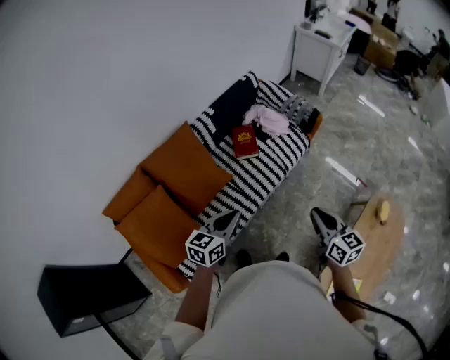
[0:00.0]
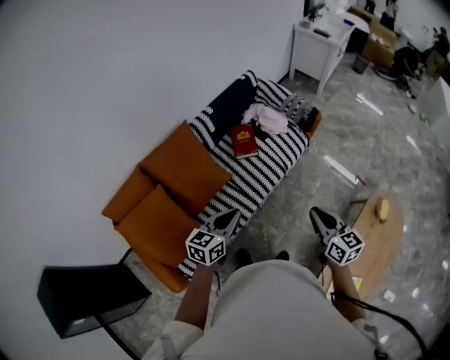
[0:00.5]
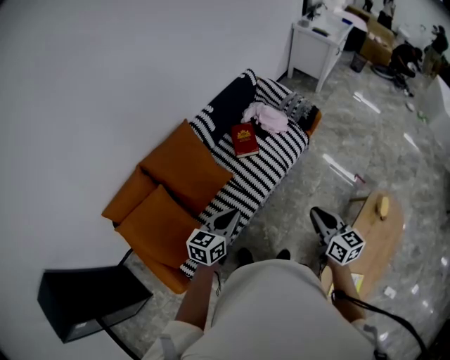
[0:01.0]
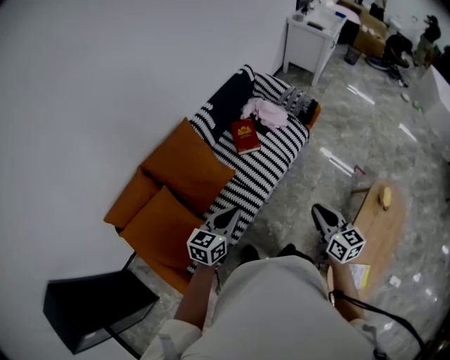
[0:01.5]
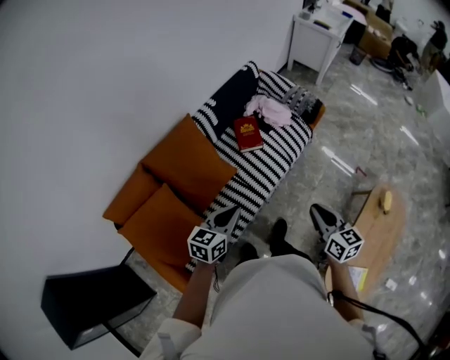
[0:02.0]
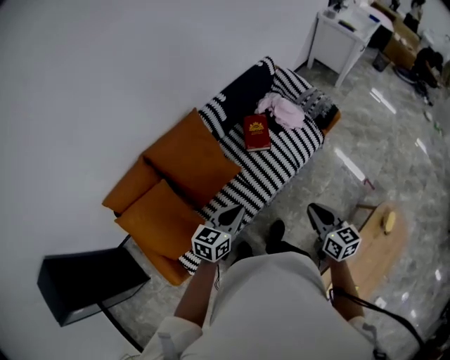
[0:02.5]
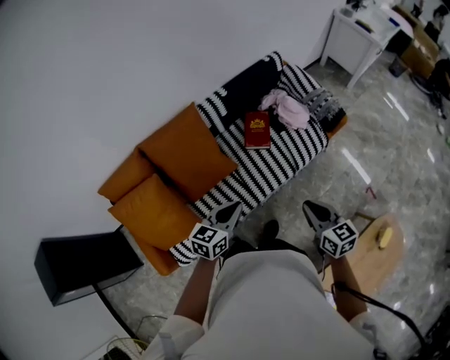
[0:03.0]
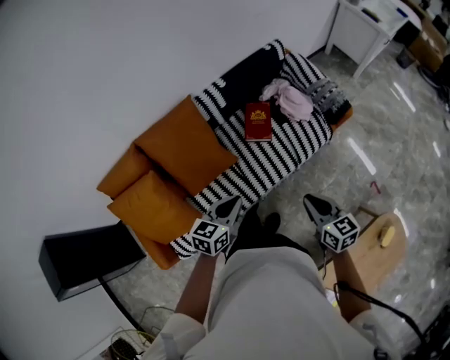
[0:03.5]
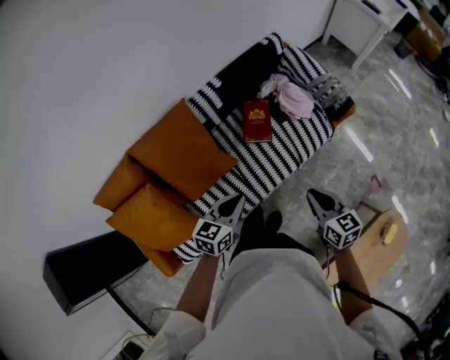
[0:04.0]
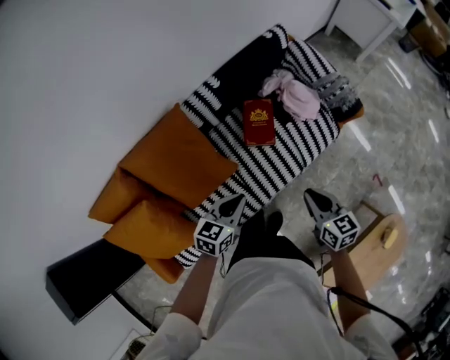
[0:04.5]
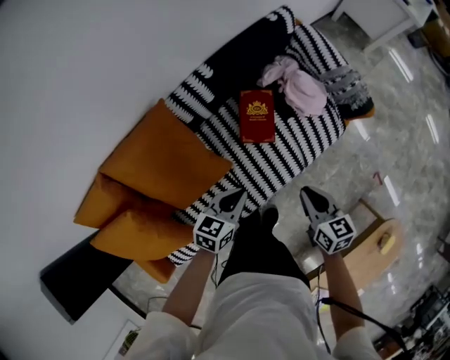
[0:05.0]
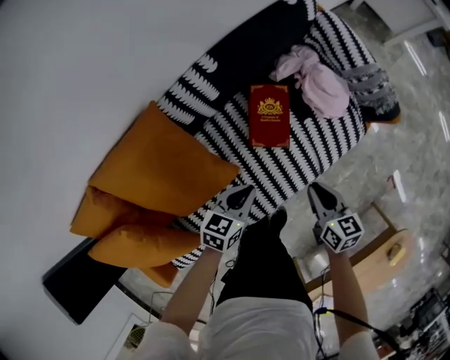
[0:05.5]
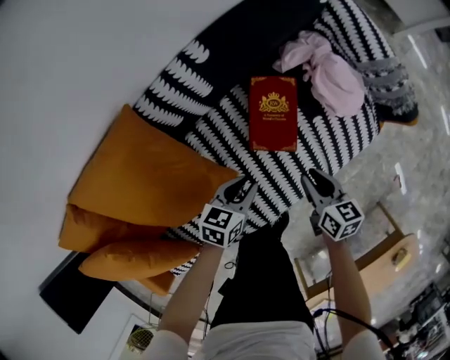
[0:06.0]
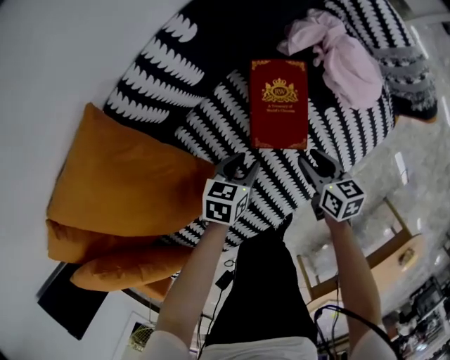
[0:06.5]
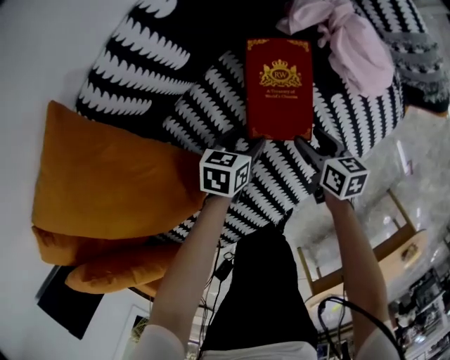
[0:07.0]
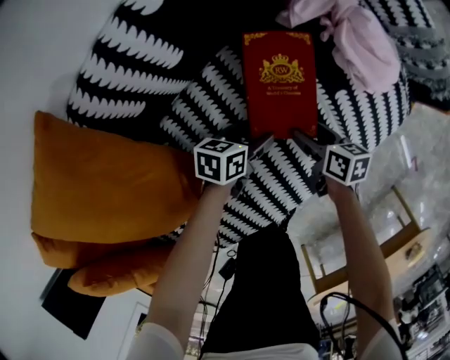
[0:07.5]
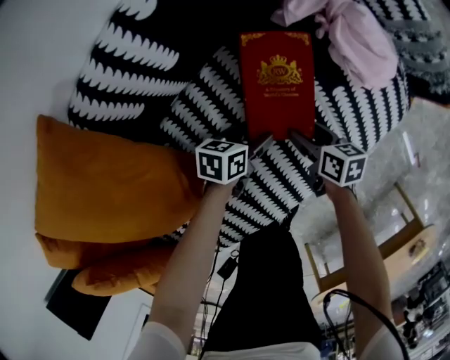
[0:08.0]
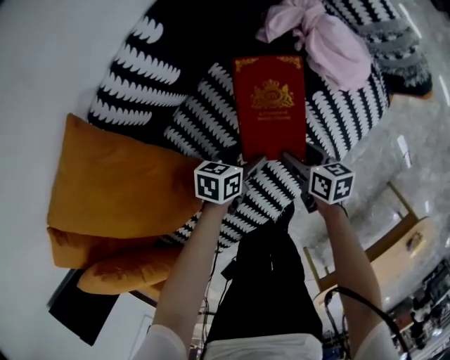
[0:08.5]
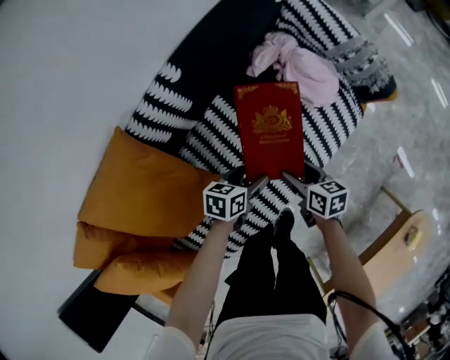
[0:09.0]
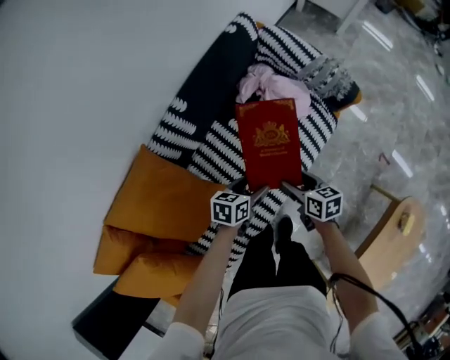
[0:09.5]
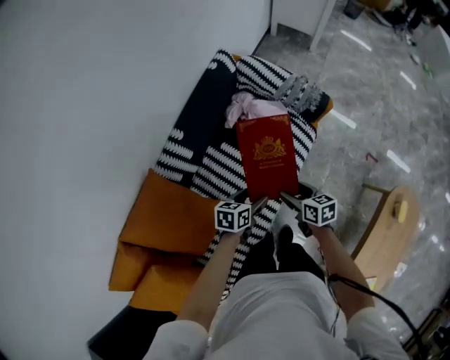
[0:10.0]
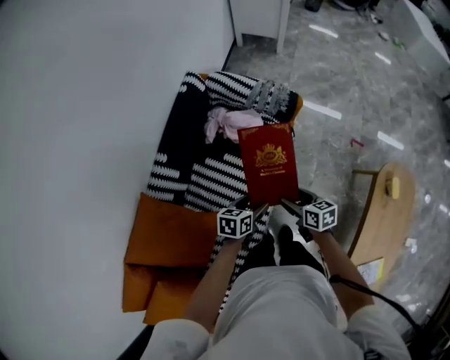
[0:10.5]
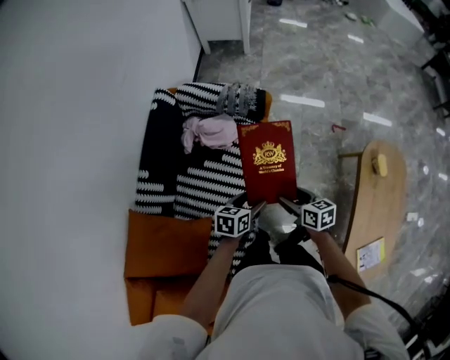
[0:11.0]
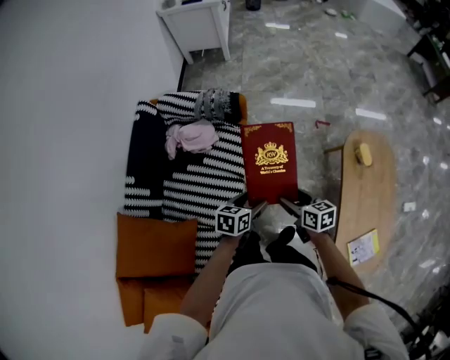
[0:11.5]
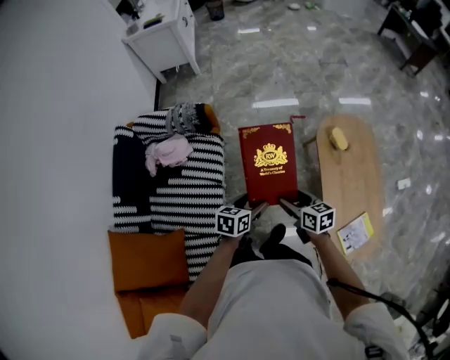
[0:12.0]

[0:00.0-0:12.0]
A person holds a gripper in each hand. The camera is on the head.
0:00.0 to 0:02.0: The grippers both shift to the left by about 5 cm.
0:02.0 to 0:04.0: The right gripper moves forward, about 25 cm, and changes its angle by some 20 degrees. Meanwhile the left gripper goes some 20 cm forward and to the right.
0:04.0 to 0:06.0: Both grippers move downward and forward, roughly 40 cm. The left gripper rotates about 20 degrees.
0:06.0 to 0:08.0: The grippers both shift downward by approximately 20 cm. The left gripper rotates some 20 degrees, and opens up. The right gripper opens.
0:08.0 to 0:10.0: Both grippers move upward, about 35 cm. The left gripper changes its angle by approximately 20 degrees.
0:10.0 to 0:12.0: The two grippers travel together, some 40 cm. The right gripper changes its angle by approximately 40 degrees. The left gripper rotates approximately 40 degrees.

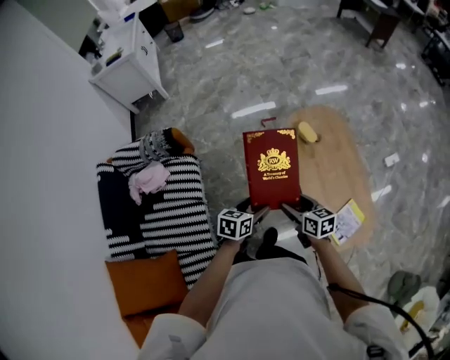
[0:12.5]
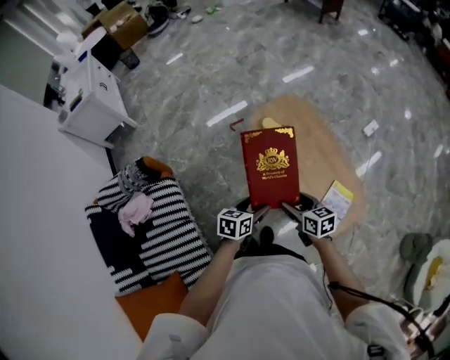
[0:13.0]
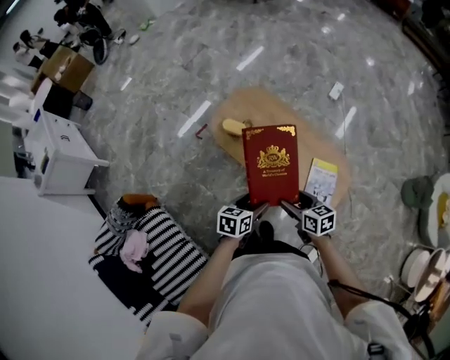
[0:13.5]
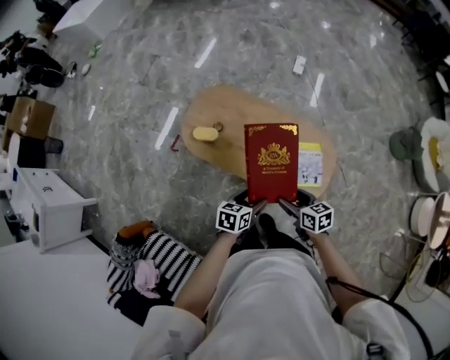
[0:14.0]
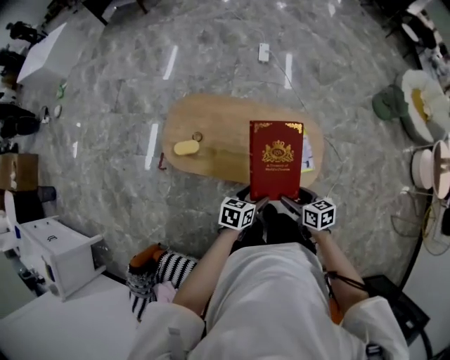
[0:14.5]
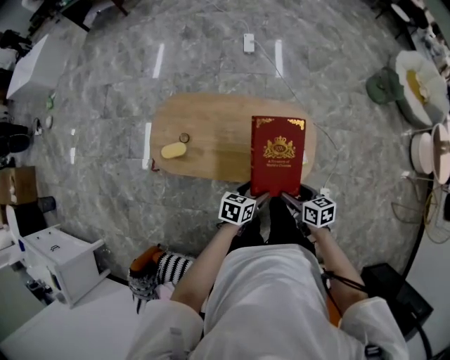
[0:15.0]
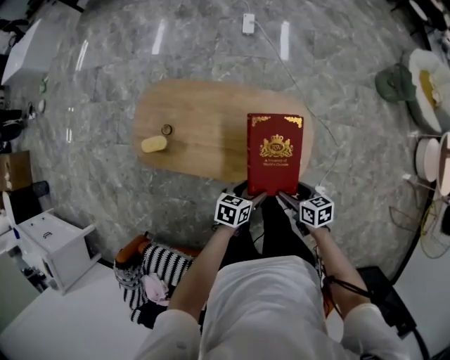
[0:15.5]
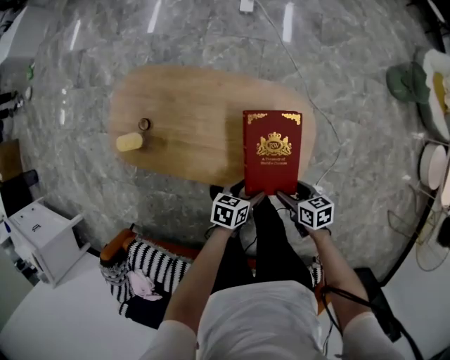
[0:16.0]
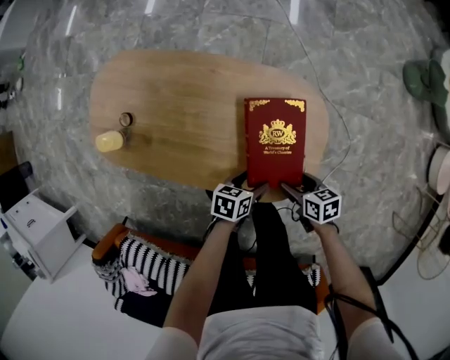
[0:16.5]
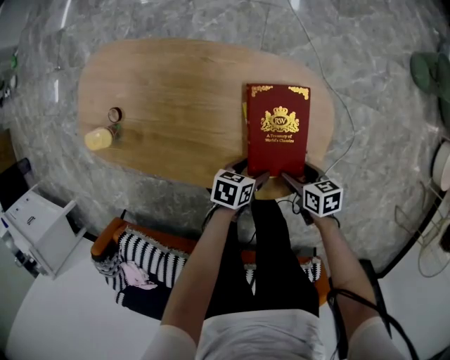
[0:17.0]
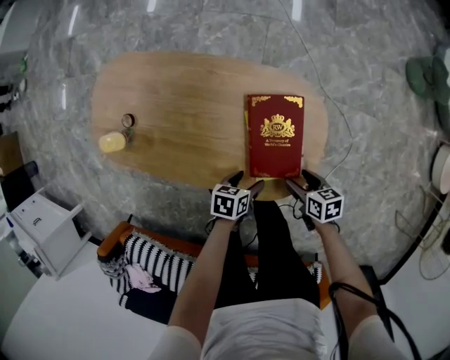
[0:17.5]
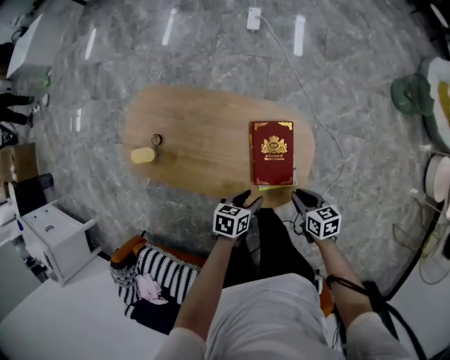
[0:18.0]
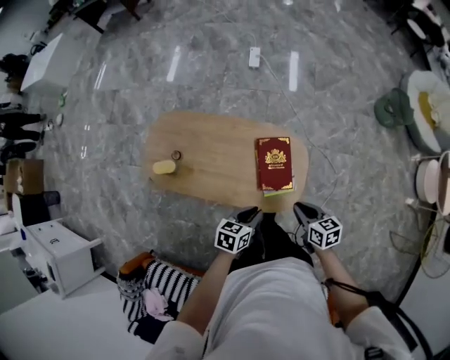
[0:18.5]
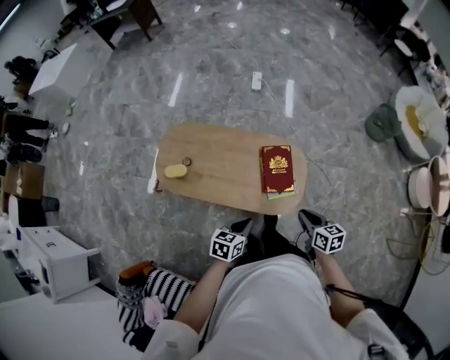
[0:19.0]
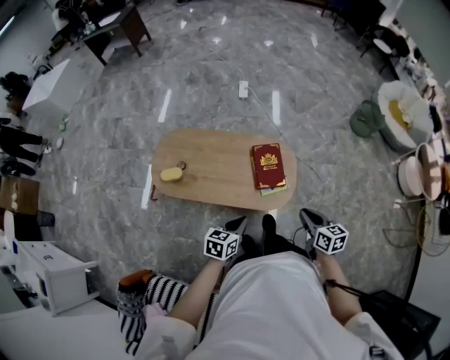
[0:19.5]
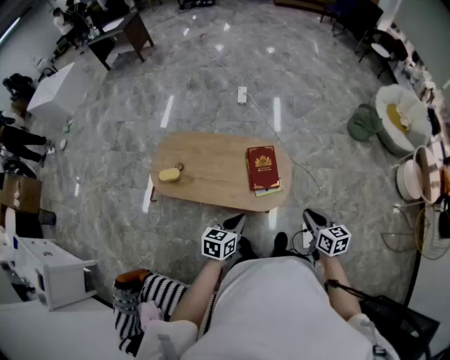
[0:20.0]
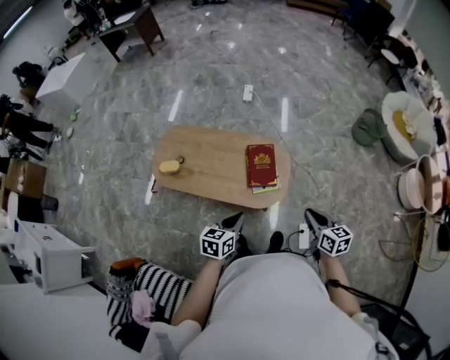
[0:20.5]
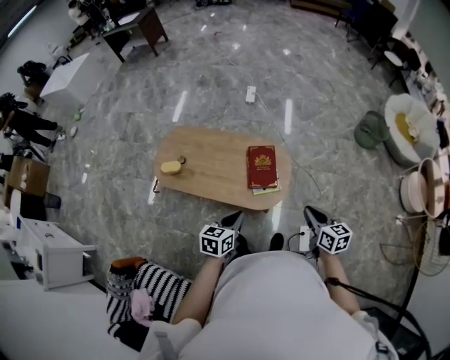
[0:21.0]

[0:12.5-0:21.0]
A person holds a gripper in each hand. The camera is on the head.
0:12.5 to 0:14.5: The right gripper moves approximately 25 cm, and changes its angle by approximately 60 degrees. The left gripper moves roughly 30 cm, and turns by roughly 70 degrees.
0:14.5 to 0:16.5: Both grippers move downward, about 30 cm.
0:16.5 to 0:19.0: Both grippers move upward, some 35 cm. The right gripper changes its angle by approximately 30 degrees, and closes; the left gripper changes its angle by roughly 20 degrees, and closes up.
0:19.0 to 0:21.0: The right gripper heads to the right, upward and backward, covering approximately 15 cm, while the left gripper shifts roughly 10 cm upward, to the right and backward.

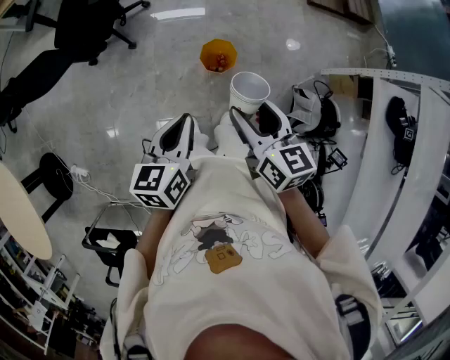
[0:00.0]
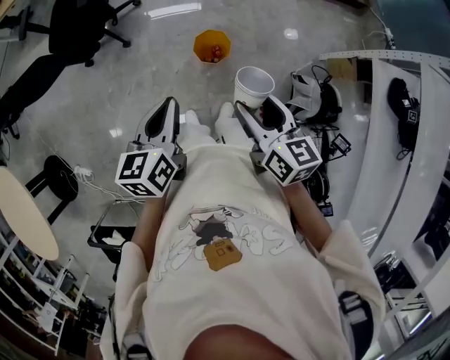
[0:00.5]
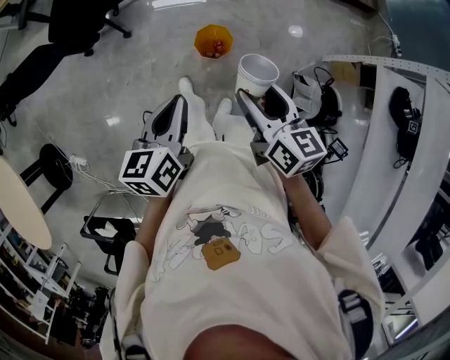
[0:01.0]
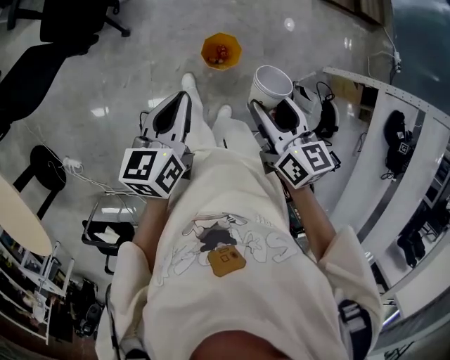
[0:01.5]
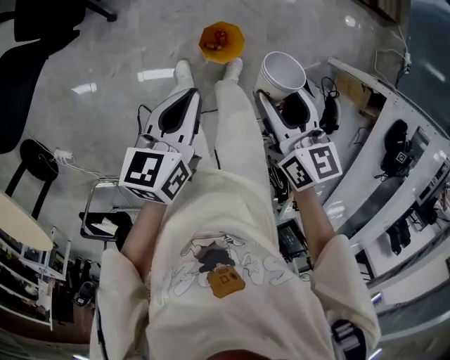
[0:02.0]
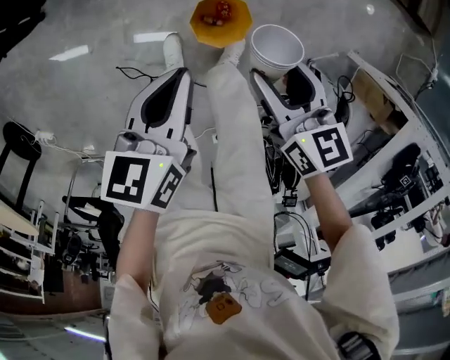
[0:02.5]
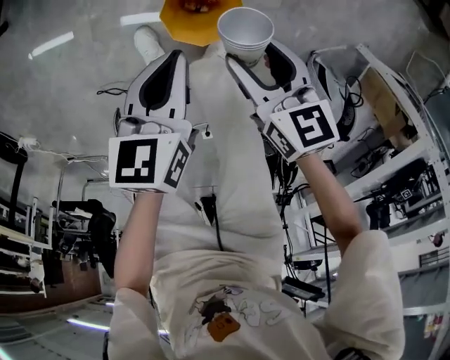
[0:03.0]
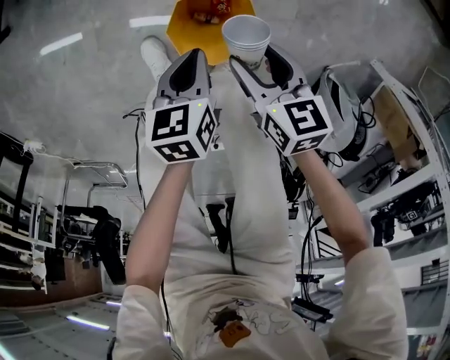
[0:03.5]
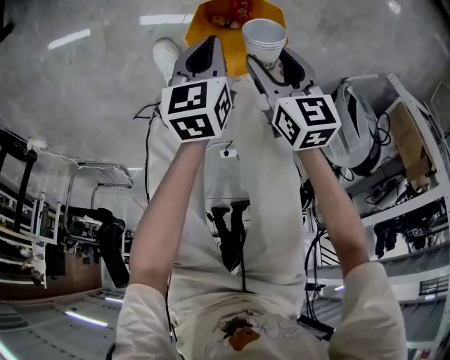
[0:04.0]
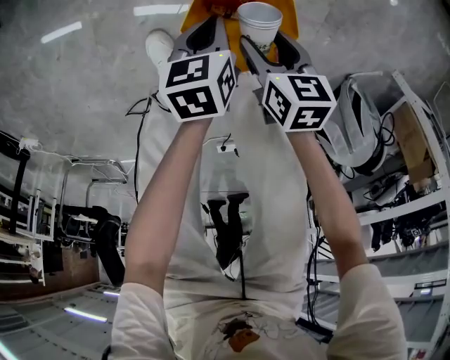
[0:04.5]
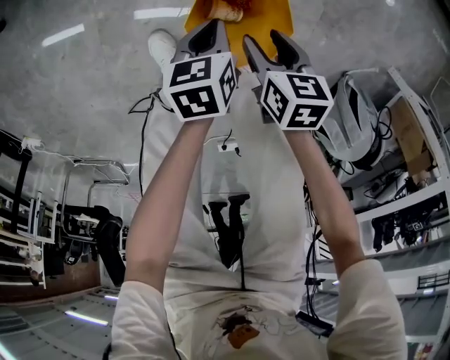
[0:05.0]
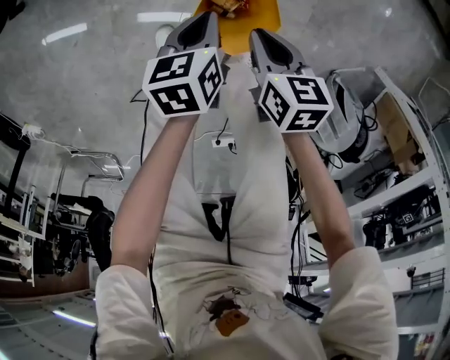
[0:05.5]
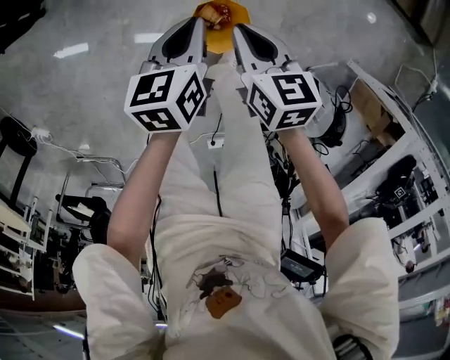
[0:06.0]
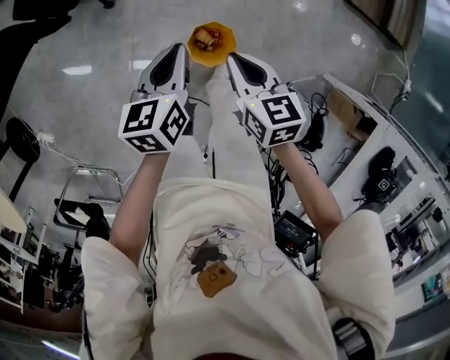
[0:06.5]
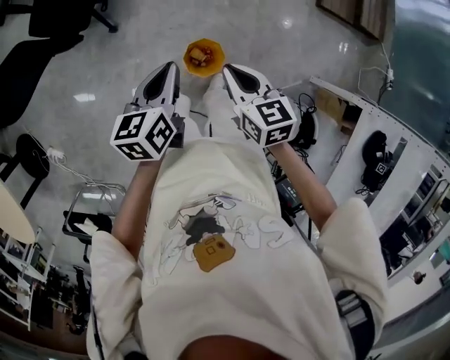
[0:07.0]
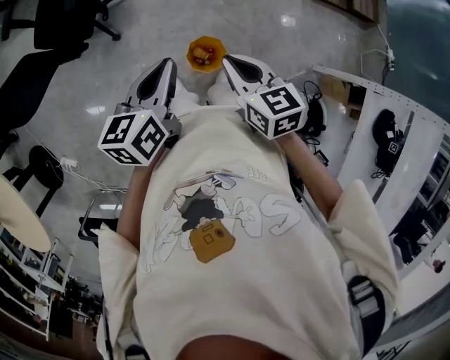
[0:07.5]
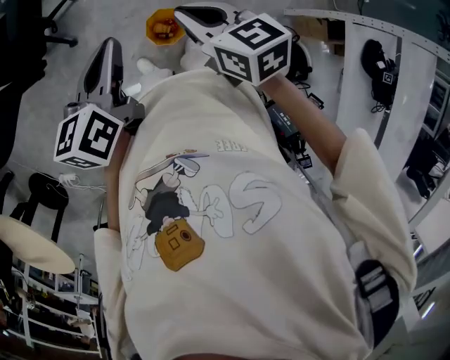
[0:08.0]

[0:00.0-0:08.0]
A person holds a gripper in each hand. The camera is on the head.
0:00.0 to 0:02.0: Both grippers move forward and downward, about 30 cm.
0:02.0 to 0:04.0: The grippers both shift downward by about 60 cm. The left gripper changes its angle by approximately 30 degrees. Meanwhile the right gripper rotates approximately 30 degrees.
0:04.0 to 0:06.0: Both grippers move upward, roughly 30 cm. The right gripper closes its fingers.
0:06.0 to 0:08.0: The two grippers go approximately 40 cm upward. The left gripper changes its angle by approximately 20 degrees.
